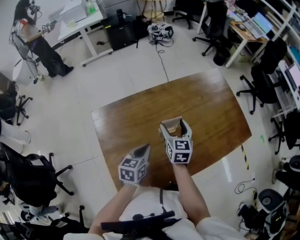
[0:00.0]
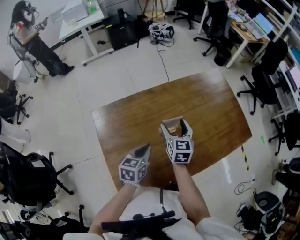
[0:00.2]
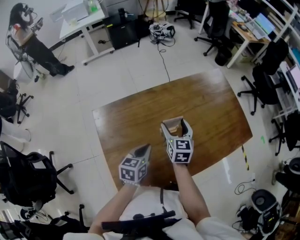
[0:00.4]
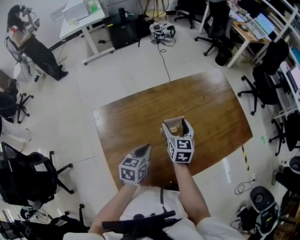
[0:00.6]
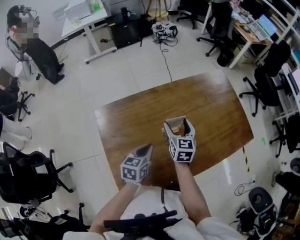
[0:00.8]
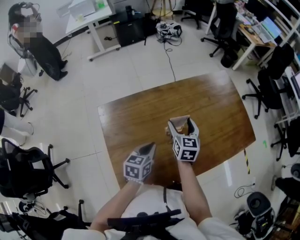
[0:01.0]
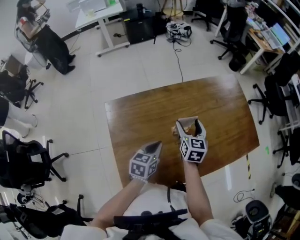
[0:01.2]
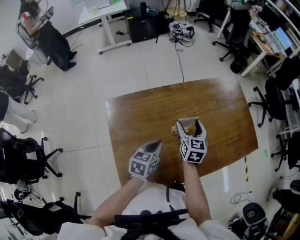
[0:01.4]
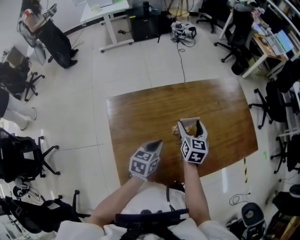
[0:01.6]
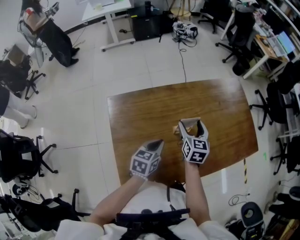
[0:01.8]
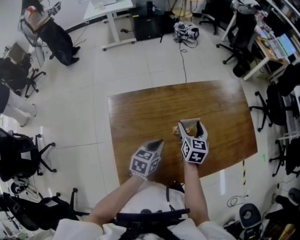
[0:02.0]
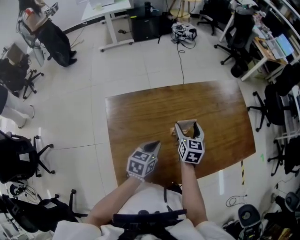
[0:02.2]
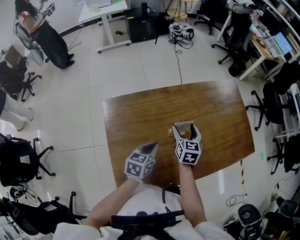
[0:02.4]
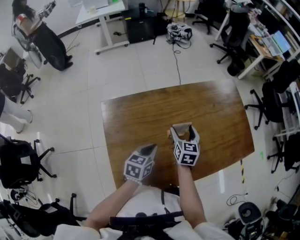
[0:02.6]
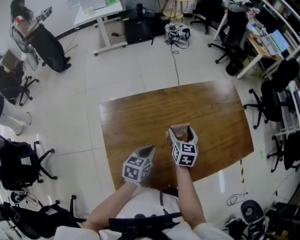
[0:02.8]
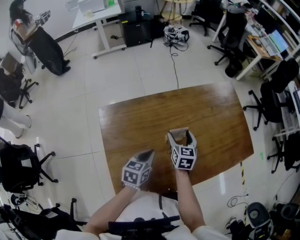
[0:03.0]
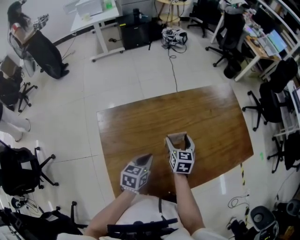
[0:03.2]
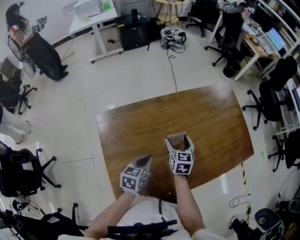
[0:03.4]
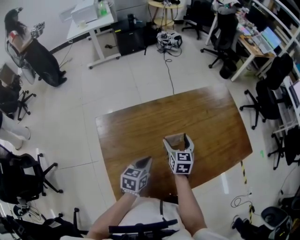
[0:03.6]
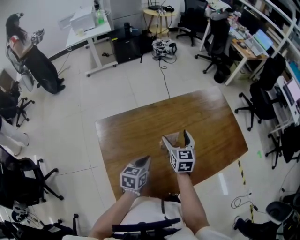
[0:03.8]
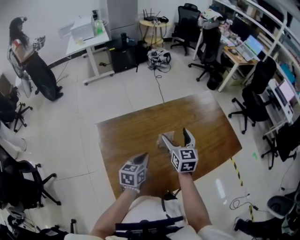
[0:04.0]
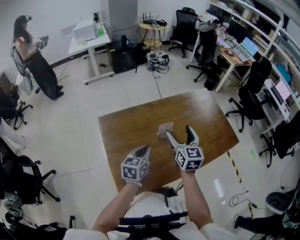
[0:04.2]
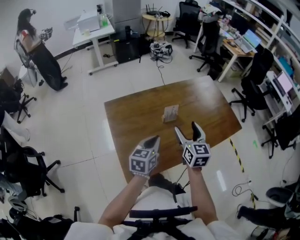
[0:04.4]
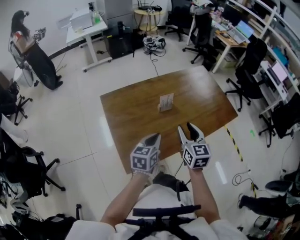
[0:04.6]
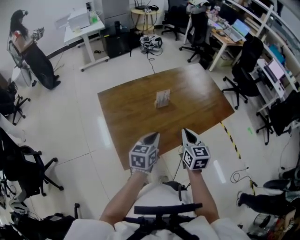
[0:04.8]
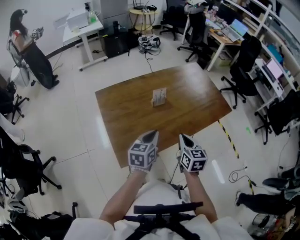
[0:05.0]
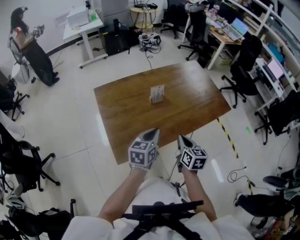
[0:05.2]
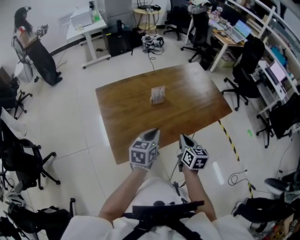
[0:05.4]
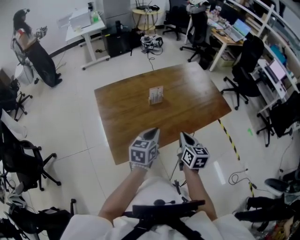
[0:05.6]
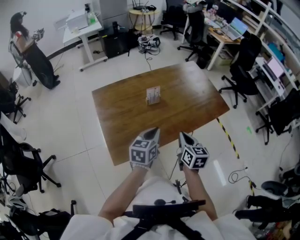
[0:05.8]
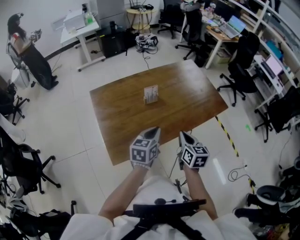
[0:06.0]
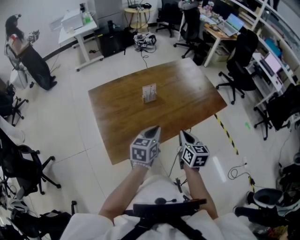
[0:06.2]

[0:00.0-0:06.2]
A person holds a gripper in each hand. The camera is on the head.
0:00.0 to 0:01.6: Both grippers stay put.
0:01.6 to 0:03.2: The right gripper moves downward, some 5 cm.
0:03.2 to 0:04.6: The right gripper travels backward and upward by some 30 cm, and closes its fingers, while the left gripper shifts about 20 cm backward, upward and to the right.
0:04.6 to 0:06.2: The right gripper shifts about 15 cm to the right, backward and downward, and closes up. The left gripper heads to the right, covering roughly 10 cm.

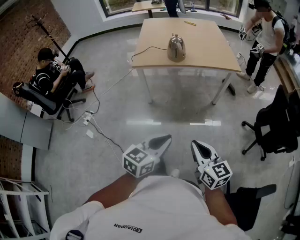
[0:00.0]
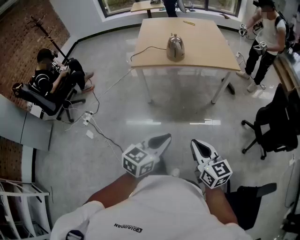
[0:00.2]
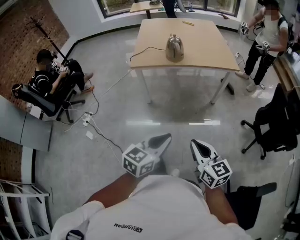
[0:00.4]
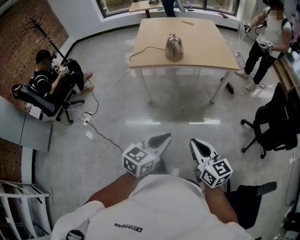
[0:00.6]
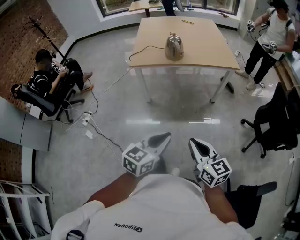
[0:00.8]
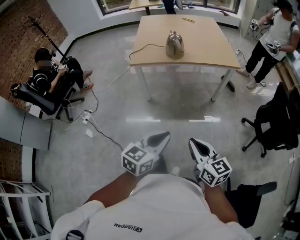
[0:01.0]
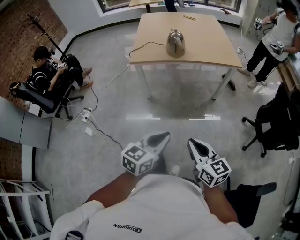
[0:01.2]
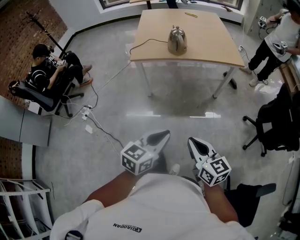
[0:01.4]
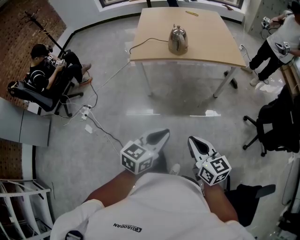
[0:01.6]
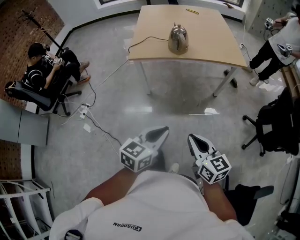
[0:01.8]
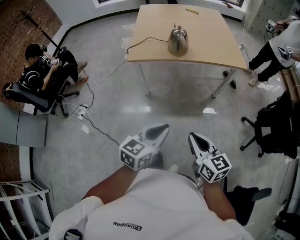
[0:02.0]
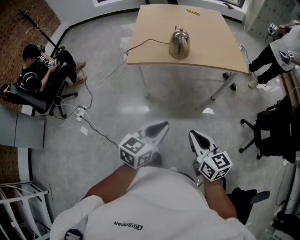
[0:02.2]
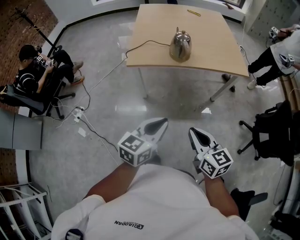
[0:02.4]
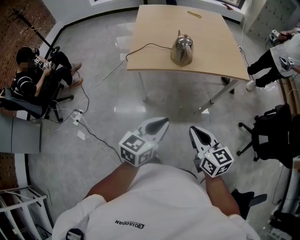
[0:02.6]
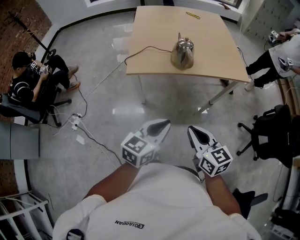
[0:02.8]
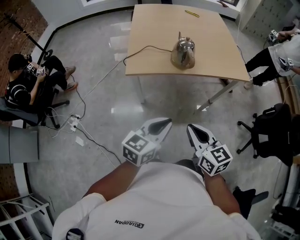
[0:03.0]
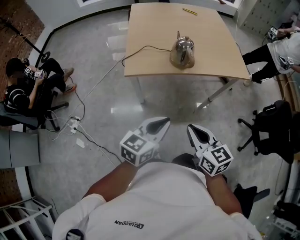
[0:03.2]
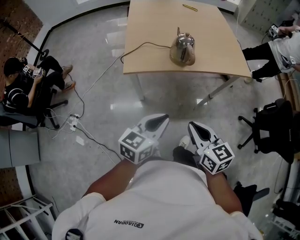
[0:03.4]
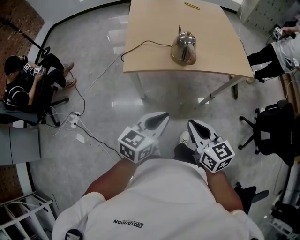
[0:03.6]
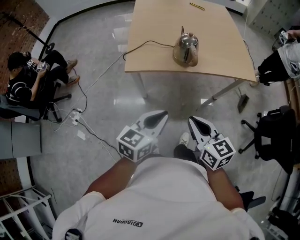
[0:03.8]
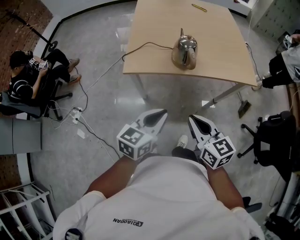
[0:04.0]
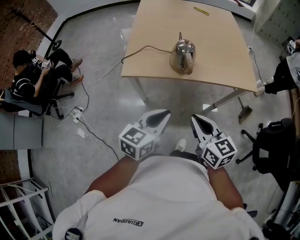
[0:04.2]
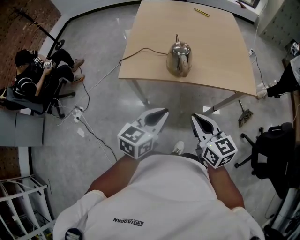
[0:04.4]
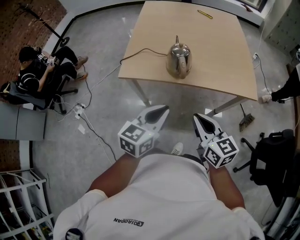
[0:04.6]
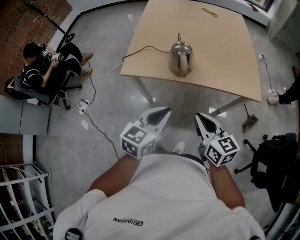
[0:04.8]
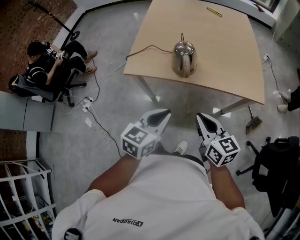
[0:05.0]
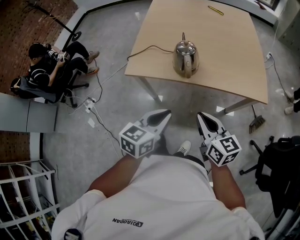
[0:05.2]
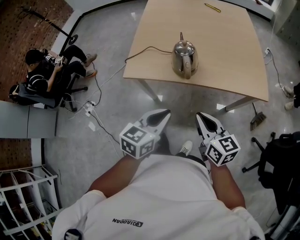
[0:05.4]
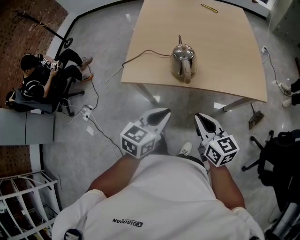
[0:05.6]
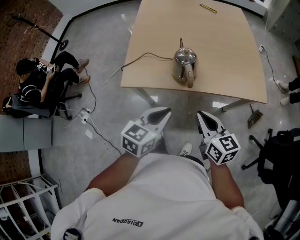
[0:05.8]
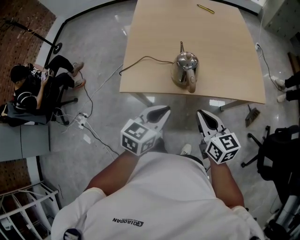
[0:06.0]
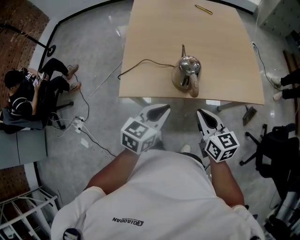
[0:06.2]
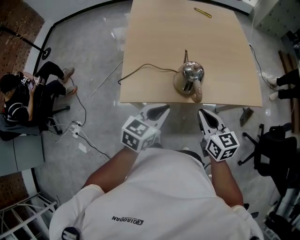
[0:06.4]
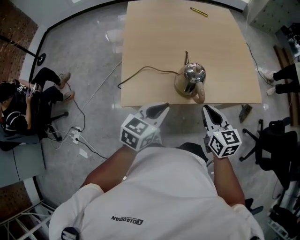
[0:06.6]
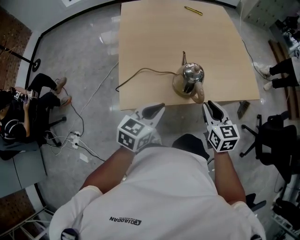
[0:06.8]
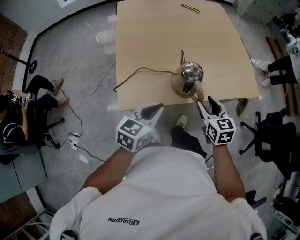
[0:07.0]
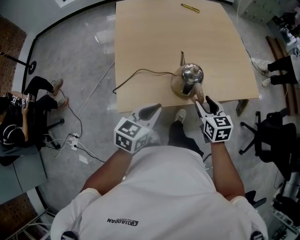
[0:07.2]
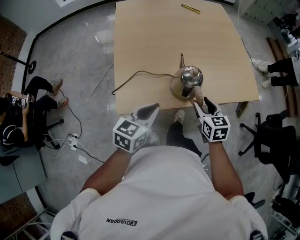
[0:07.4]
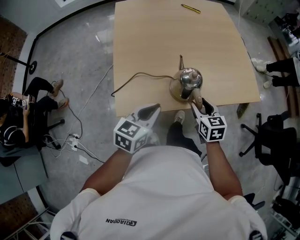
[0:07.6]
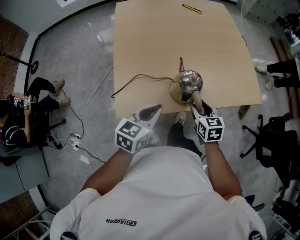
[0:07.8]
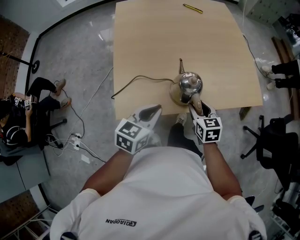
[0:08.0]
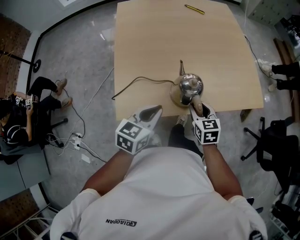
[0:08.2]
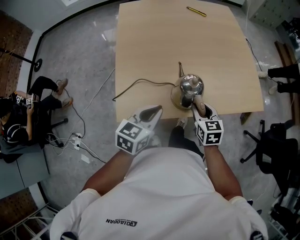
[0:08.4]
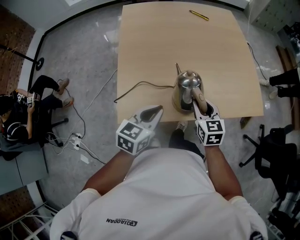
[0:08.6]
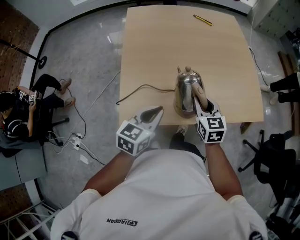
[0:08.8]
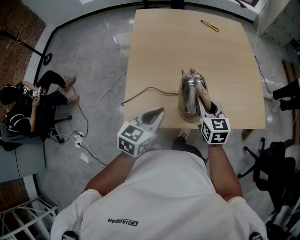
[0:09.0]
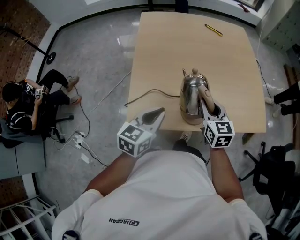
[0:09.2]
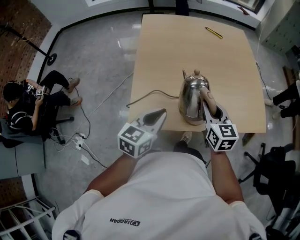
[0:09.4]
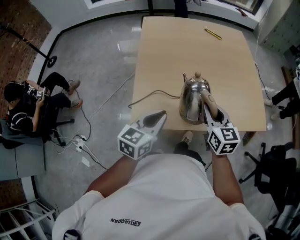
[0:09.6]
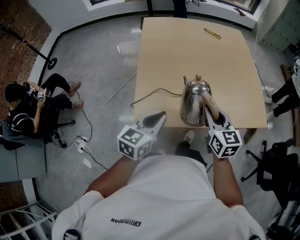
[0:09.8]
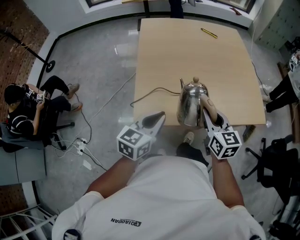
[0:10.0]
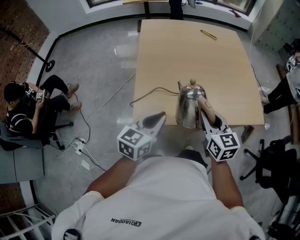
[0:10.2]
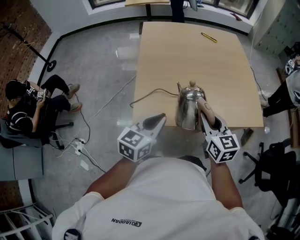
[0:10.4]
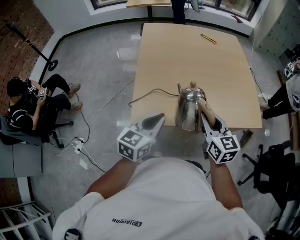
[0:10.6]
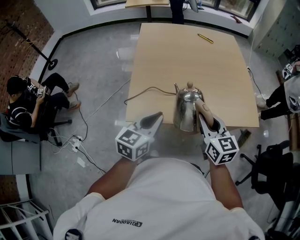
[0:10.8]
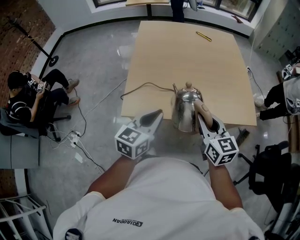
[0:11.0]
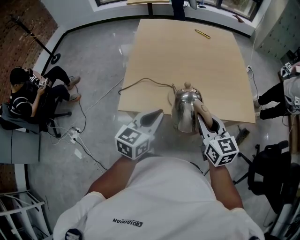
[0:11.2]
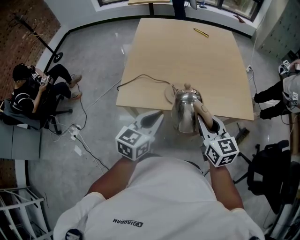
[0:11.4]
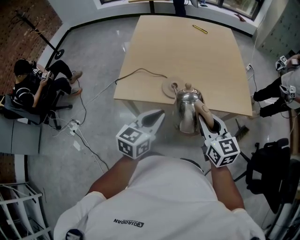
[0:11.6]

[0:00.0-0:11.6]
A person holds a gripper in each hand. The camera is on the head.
0:00.0 to 0:01.4: There are only small adjustments of the grippers.
0:01.4 to 0:02.8: Both grippers move forward and to the left, approximately 25 cm.
0:02.8 to 0:04.4: The two grippers go roughly 15 cm forward and to the right.
0:04.4 to 0:05.8: The grippers both shift forward by roughly 10 cm.
0:05.8 to 0:07.2: The left gripper heads to the left and forward, covering about 15 cm, while the right gripper heads forward, downward and to the left, covering about 15 cm, rotates roughly 30 degrees, and opens its fingers.
0:07.2 to 0:08.8: Both grippers move forward, roughly 10 cm. The right gripper closes up.
0:08.8 to 0:10.2: The right gripper goes approximately 15 cm backward and upward; the left gripper travels backward by some 5 cm.
0:10.2 to 0:11.6: Both grippers move to the right and backward, approximately 20 cm.

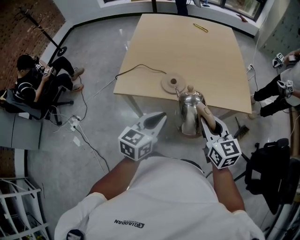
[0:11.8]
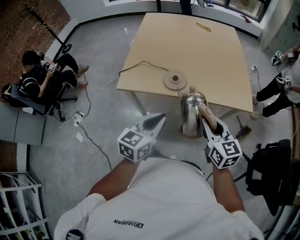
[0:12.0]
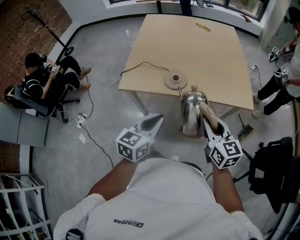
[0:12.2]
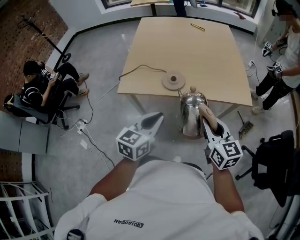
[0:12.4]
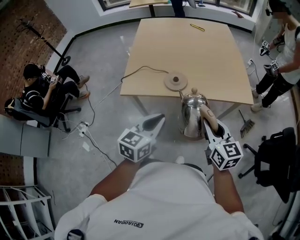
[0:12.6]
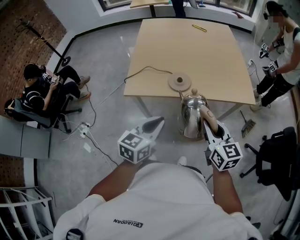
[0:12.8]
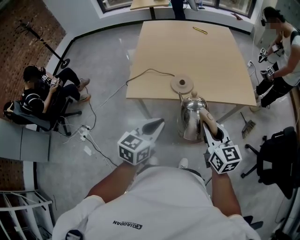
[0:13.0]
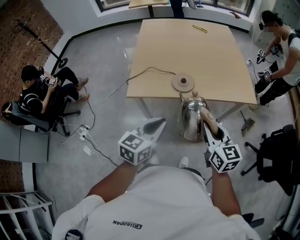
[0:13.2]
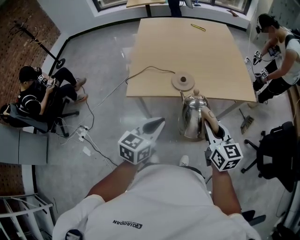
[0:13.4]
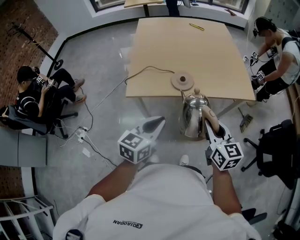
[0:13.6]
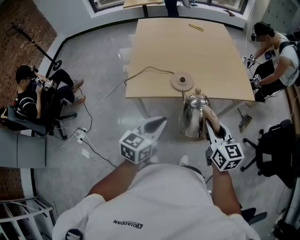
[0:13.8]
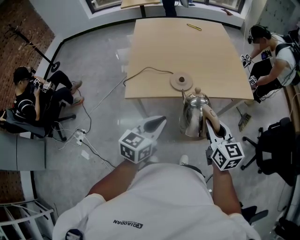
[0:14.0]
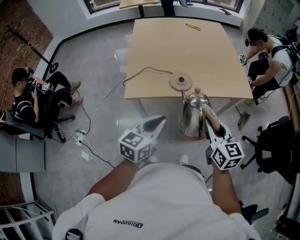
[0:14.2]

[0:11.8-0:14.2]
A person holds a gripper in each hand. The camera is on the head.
0:11.8 to 0:13.0: The grippers both shift to the left and backward by approximately 10 cm.
0:13.0 to 0:14.2: The grippers move only a little.

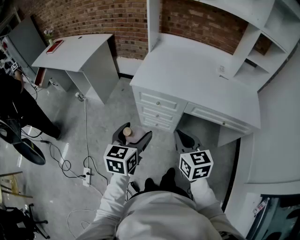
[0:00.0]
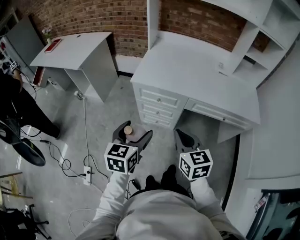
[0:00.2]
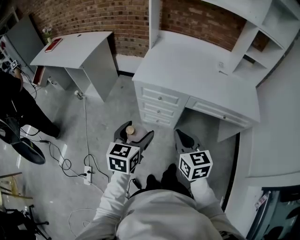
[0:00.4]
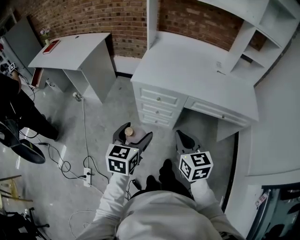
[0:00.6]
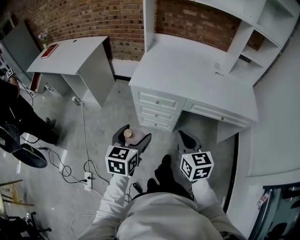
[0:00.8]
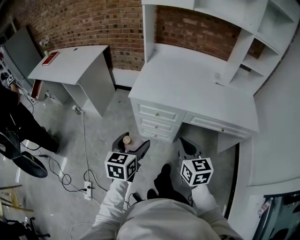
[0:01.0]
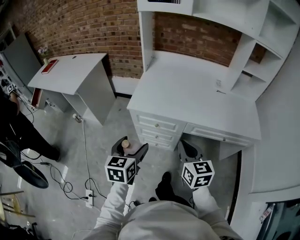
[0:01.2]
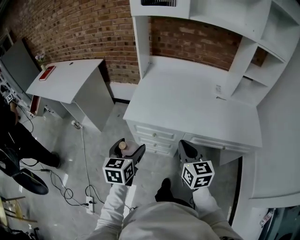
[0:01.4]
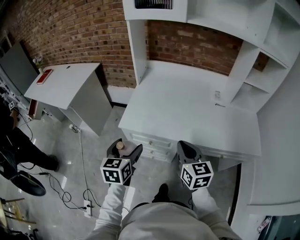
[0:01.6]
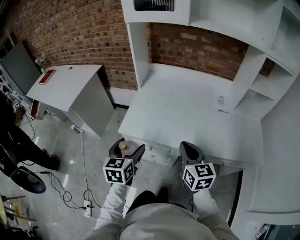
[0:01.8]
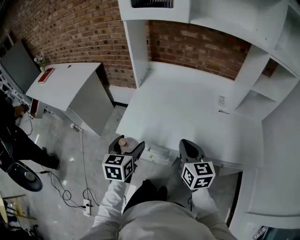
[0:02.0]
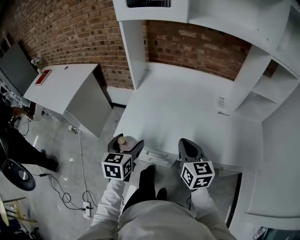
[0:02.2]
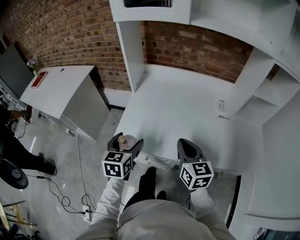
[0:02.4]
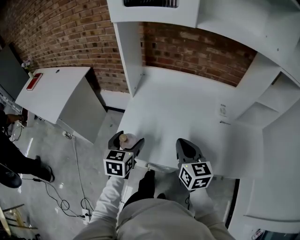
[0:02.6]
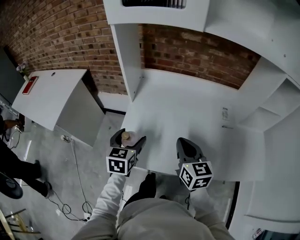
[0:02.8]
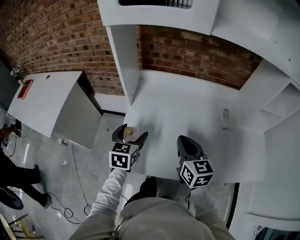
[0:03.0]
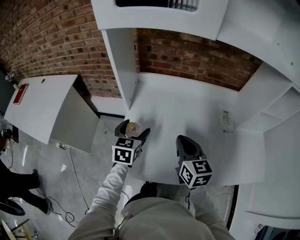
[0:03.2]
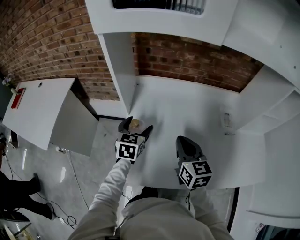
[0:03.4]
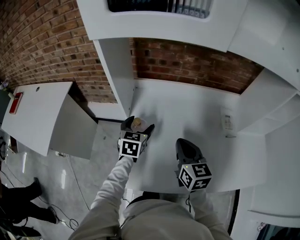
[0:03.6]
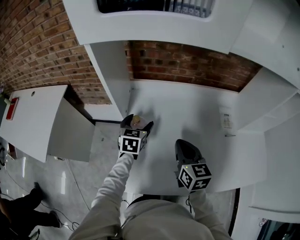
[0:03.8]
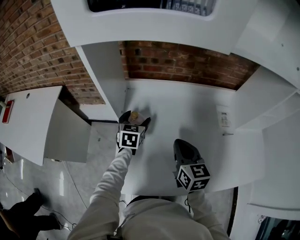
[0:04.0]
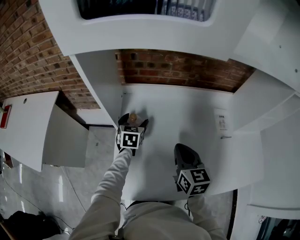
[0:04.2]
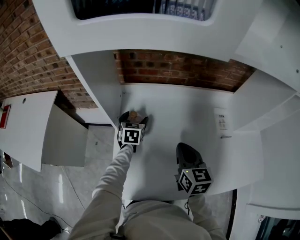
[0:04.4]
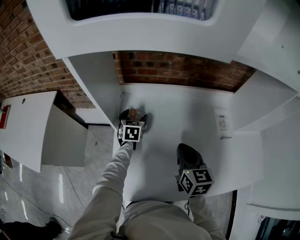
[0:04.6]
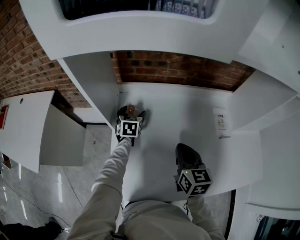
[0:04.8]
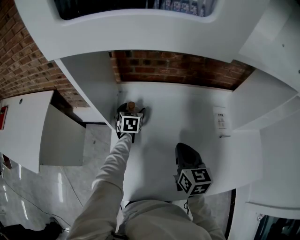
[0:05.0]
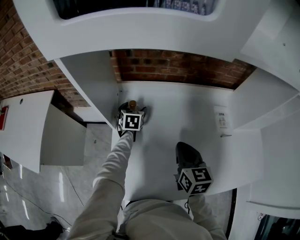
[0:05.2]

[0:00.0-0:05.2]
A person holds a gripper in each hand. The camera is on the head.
0:00.0 to 0:01.8: Both grippers move forward, approximately 25 cm.
0:01.8 to 0:03.4: Both grippers move forward, about 30 cm.
0:03.4 to 0:05.2: The right gripper is displaced forward by about 5 cm. Meanwhile the left gripper shifts roughly 25 cm forward and downward.
